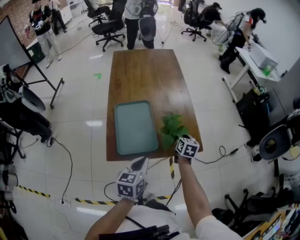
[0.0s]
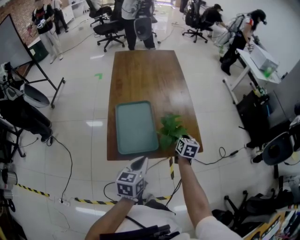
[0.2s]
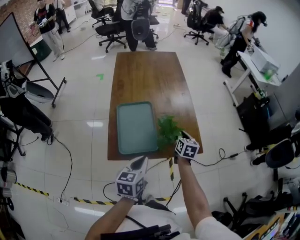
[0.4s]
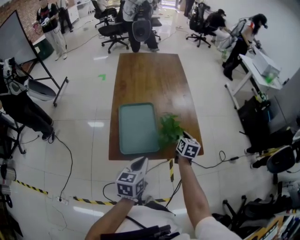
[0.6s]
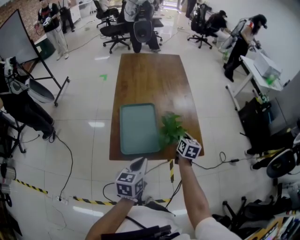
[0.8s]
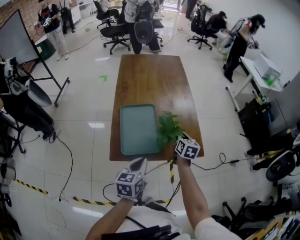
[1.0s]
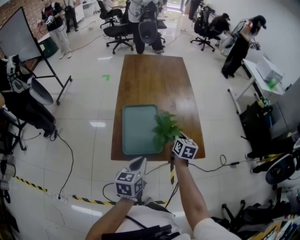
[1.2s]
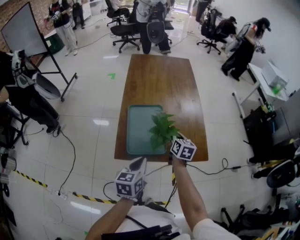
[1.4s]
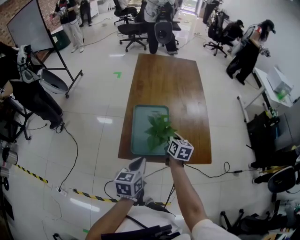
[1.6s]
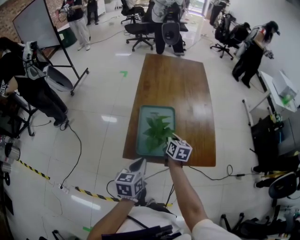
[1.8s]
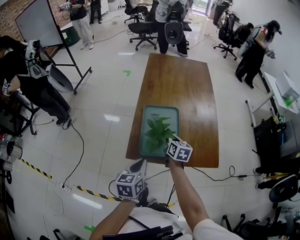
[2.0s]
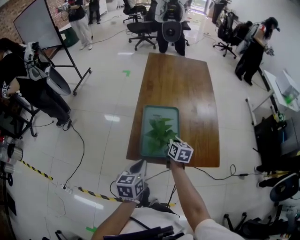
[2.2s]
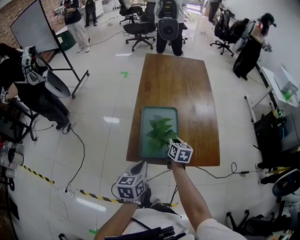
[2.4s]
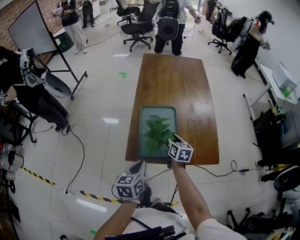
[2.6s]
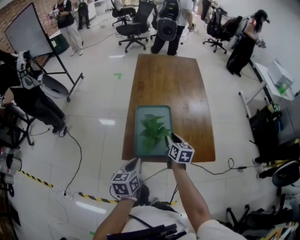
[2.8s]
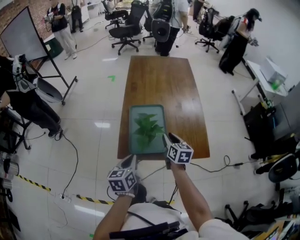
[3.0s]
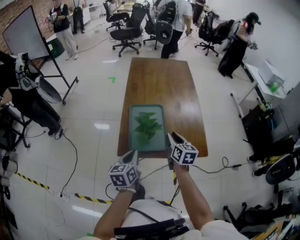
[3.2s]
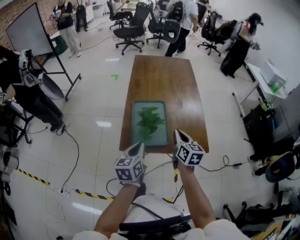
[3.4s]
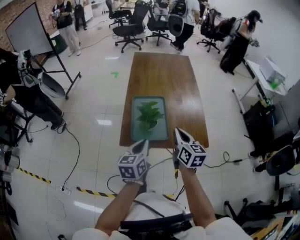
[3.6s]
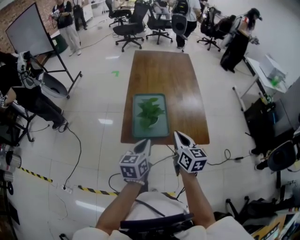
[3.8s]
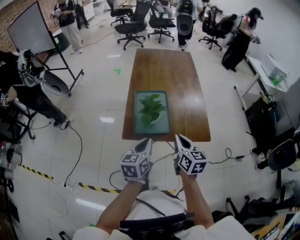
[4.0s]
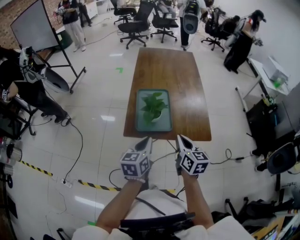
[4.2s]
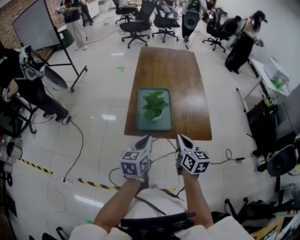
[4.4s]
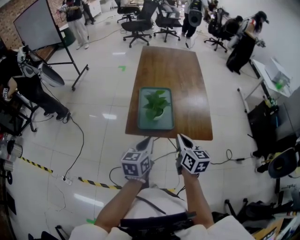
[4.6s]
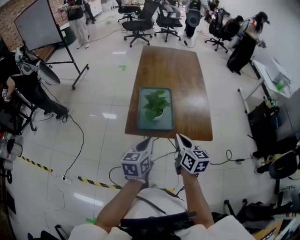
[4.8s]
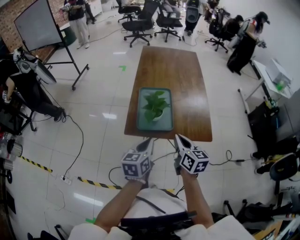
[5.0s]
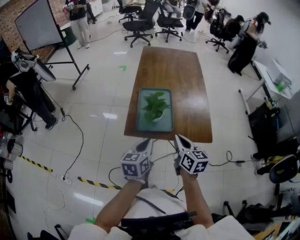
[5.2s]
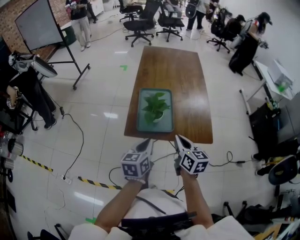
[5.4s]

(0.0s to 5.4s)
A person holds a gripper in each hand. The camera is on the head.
0.0s - 1.4s: The right gripper heads to the left, covering some 10 cm.
1.4s - 2.8s: The grippers both shift to the left by about 10 cm. The right gripper opens its fingers.
2.8s - 4.0s: The right gripper is displaced backward and upward by roughly 20 cm, and closes. The left gripper moves to the right, upward and backward, approximately 10 cm.
4.0s - 5.4s: There are only small adjustments of the grippers.

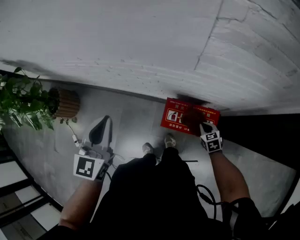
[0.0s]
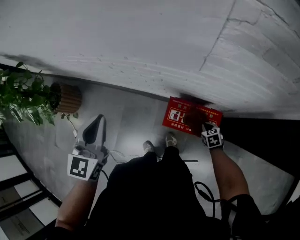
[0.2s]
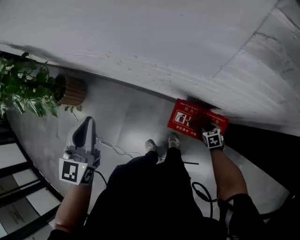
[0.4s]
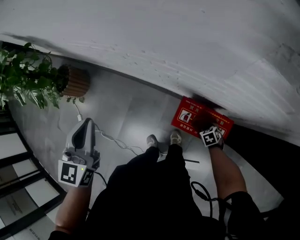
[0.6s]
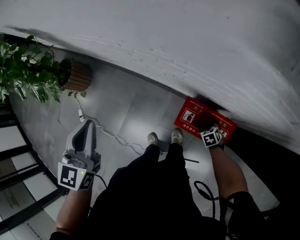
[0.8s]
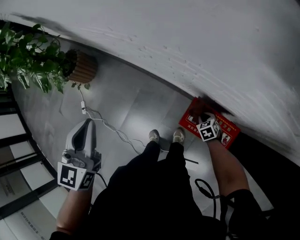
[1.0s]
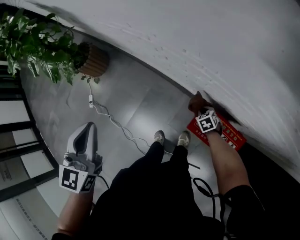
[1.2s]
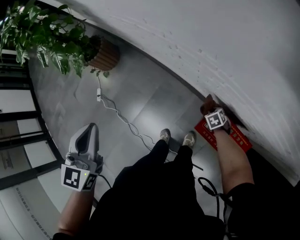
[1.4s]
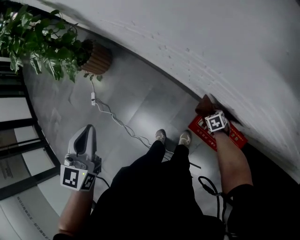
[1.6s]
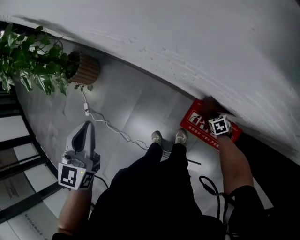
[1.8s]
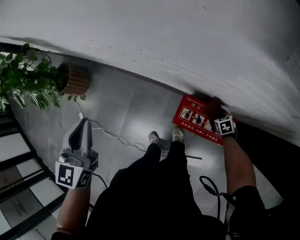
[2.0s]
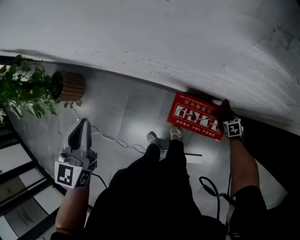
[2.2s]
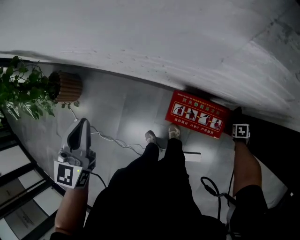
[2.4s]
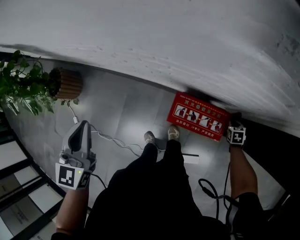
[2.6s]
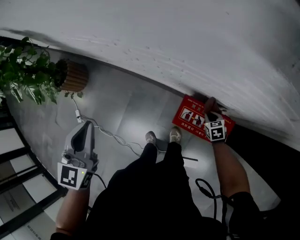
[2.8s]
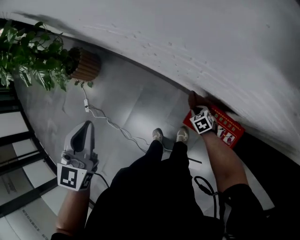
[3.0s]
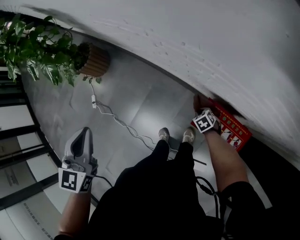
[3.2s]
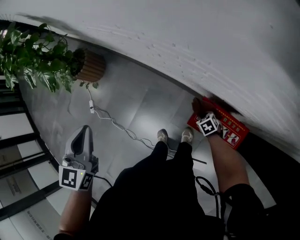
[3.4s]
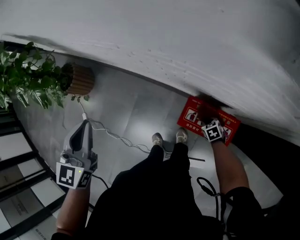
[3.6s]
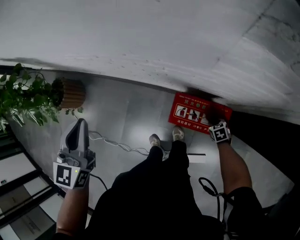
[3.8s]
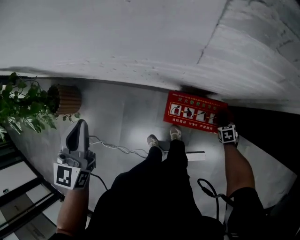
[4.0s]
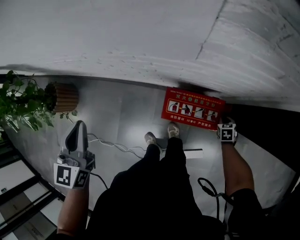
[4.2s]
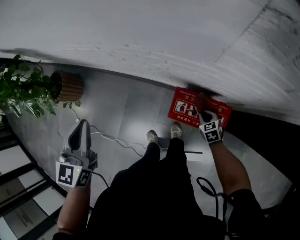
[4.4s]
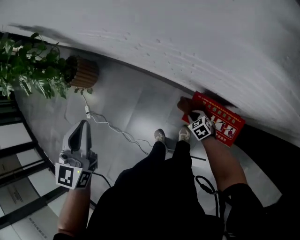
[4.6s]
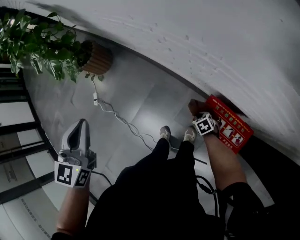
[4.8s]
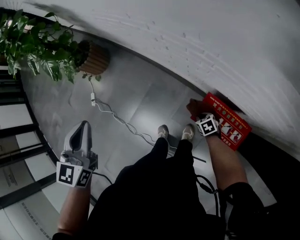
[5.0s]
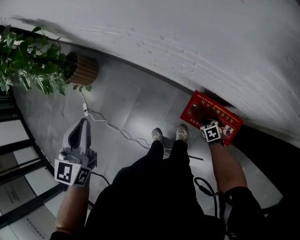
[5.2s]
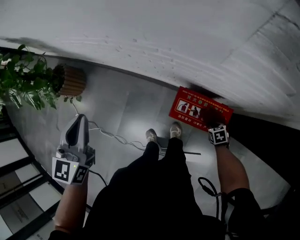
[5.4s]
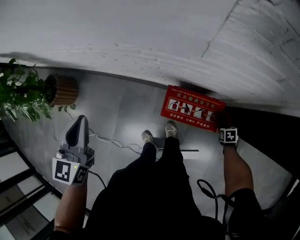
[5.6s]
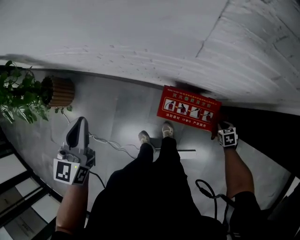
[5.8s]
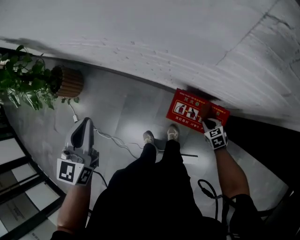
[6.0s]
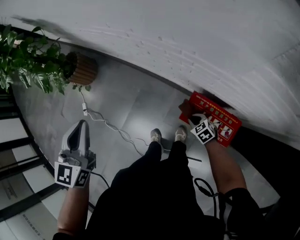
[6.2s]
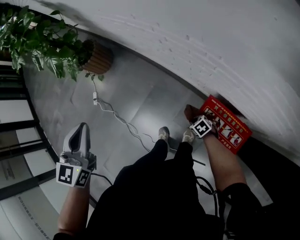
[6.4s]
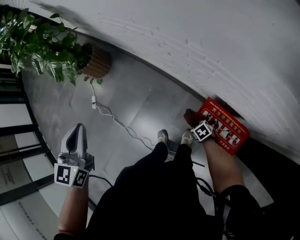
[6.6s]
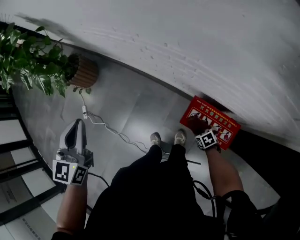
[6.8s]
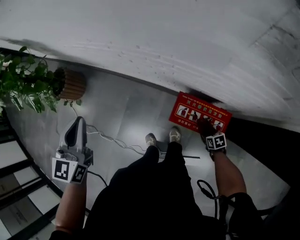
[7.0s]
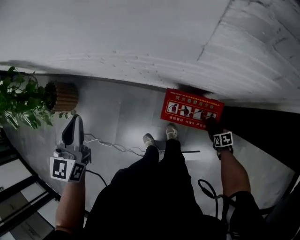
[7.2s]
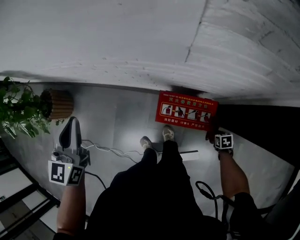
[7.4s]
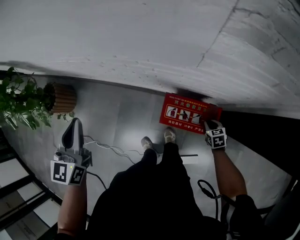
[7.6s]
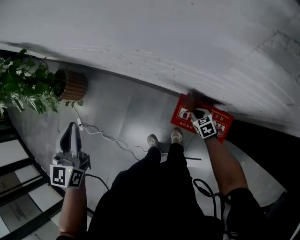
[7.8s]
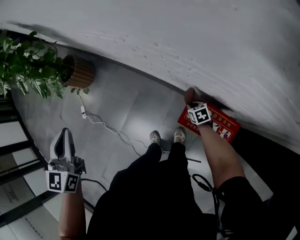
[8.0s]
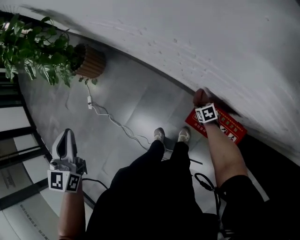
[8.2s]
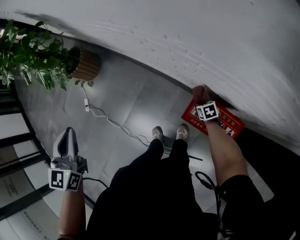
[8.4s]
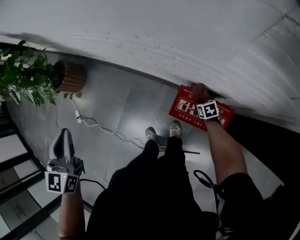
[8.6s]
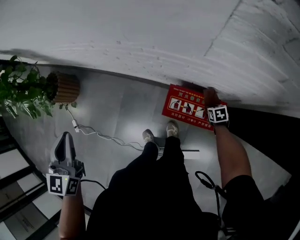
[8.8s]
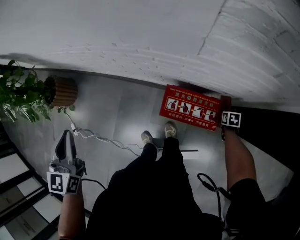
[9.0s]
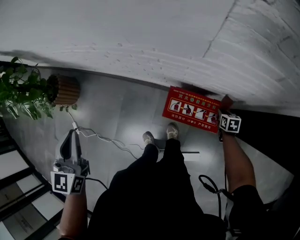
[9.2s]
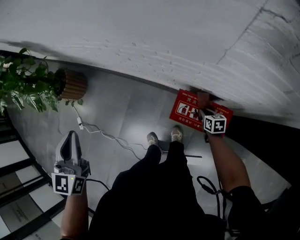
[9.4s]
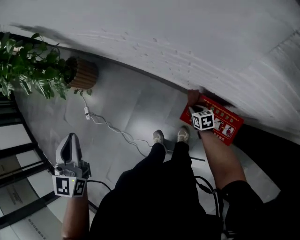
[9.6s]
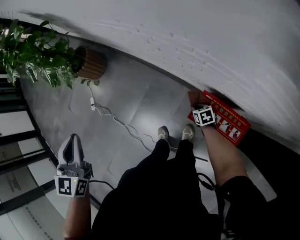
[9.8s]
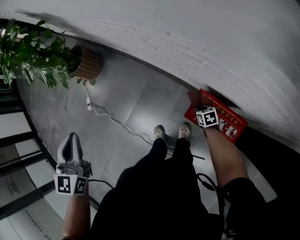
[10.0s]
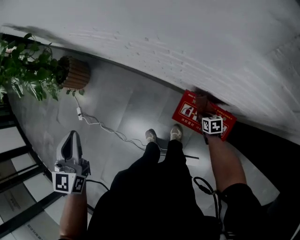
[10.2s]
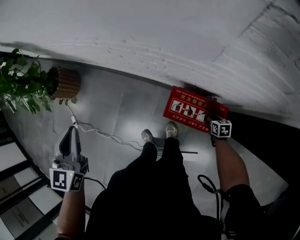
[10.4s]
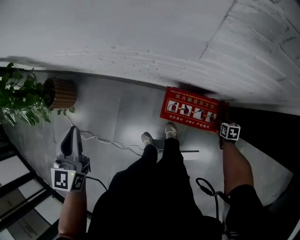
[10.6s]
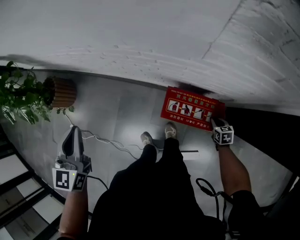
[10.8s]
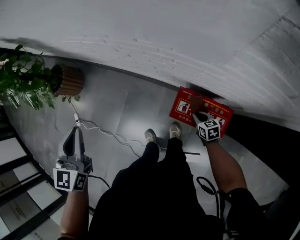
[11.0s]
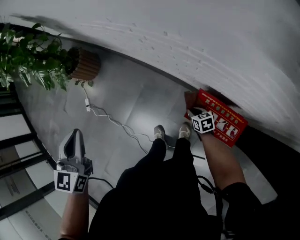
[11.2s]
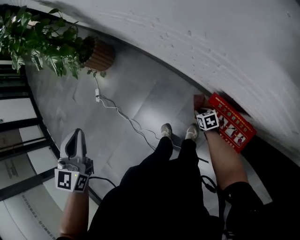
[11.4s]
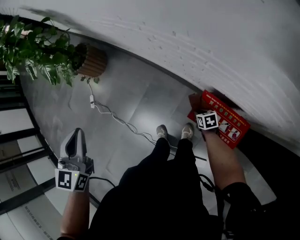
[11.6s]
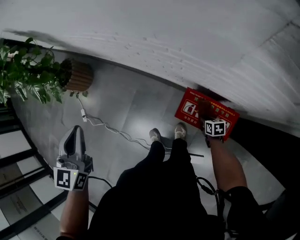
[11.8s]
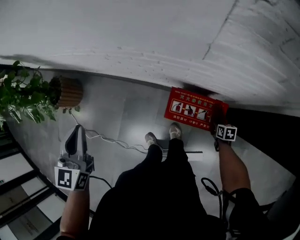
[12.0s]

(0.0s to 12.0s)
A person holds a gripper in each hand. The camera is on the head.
0.0s - 1.6s: The left gripper moves about 15 cm, and rotates approximately 30 degrees; the right gripper changes place by some 20 cm, changes its angle by some 30 degrees, and opens, then closes again.
3.0s - 4.4s: The right gripper changes its angle by roughly 20 degrees.
6.0s - 7.6s: The right gripper moves about 10 cm downward and comes back.
7.6s - 9.0s: The right gripper turns by roughly 20 degrees.

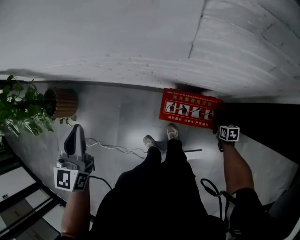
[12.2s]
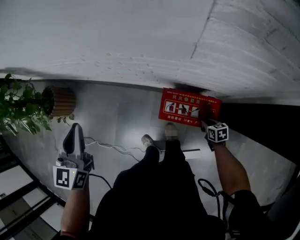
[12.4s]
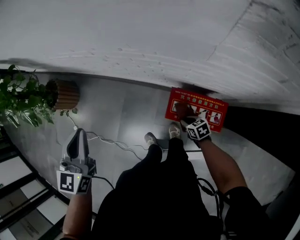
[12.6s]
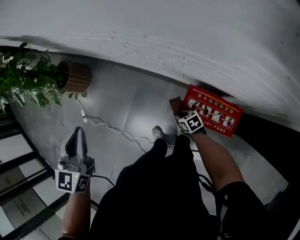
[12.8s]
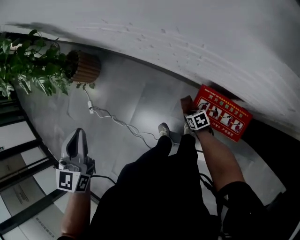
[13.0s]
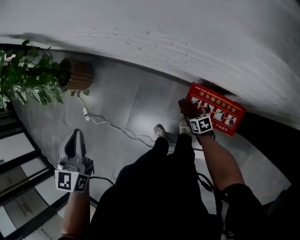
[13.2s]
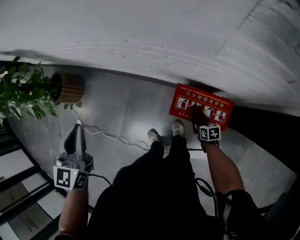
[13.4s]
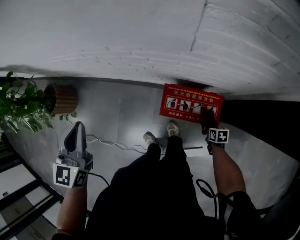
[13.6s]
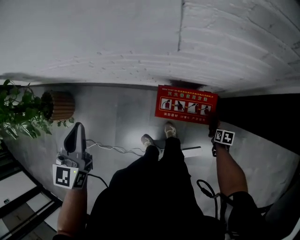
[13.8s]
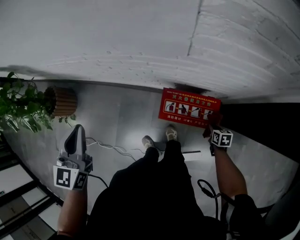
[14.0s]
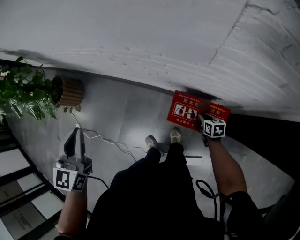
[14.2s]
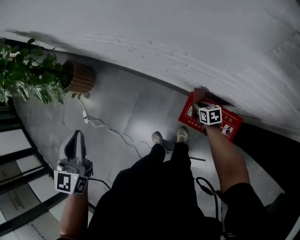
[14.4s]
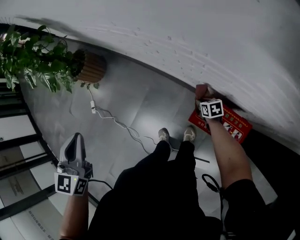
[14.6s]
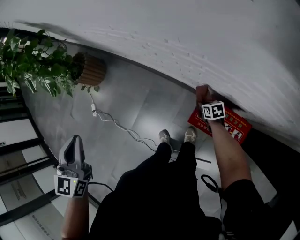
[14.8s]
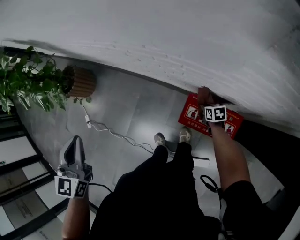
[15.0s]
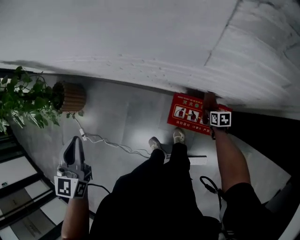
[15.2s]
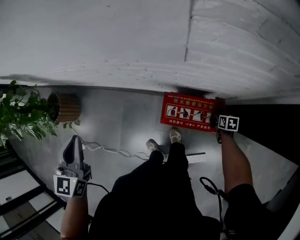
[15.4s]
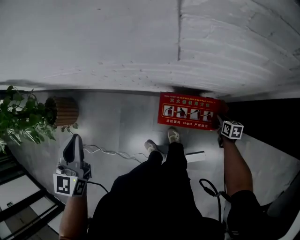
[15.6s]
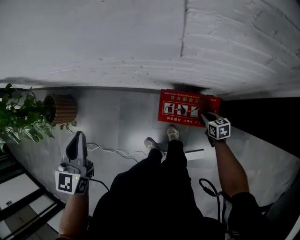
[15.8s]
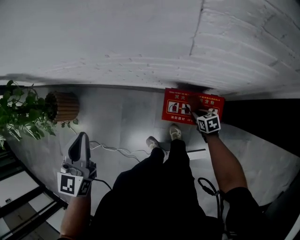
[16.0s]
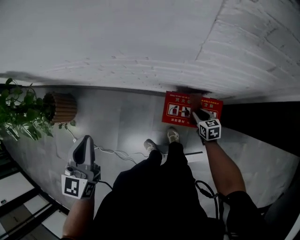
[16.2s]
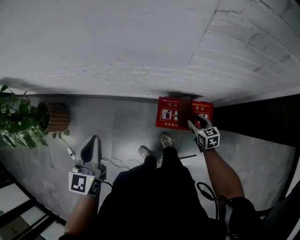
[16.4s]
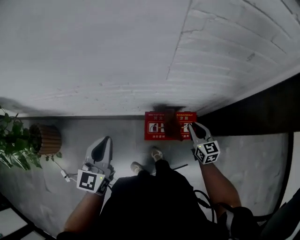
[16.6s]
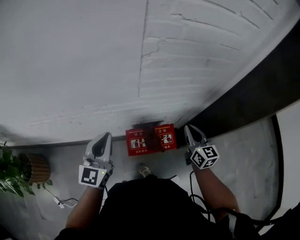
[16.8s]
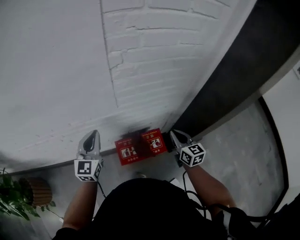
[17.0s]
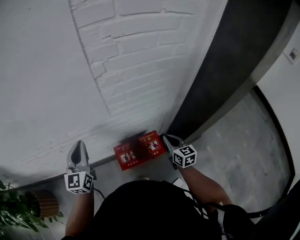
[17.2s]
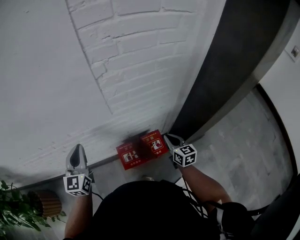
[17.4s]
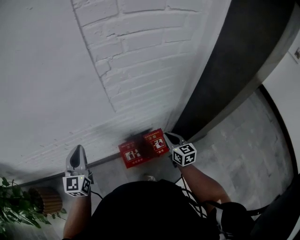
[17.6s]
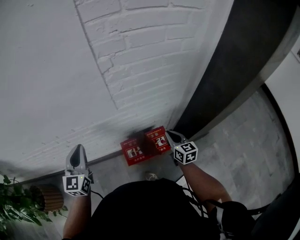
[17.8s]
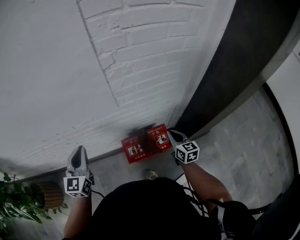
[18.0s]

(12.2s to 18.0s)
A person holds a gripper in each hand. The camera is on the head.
13.6s - 15.0s: The left gripper ends up roughly 10 cm from where it was; the right gripper shifts by about 25 cm, and swivels roughly 20 degrees.
15.0s - 16.6s: The right gripper shifts some 25 cm upward, swivels some 50 degrees, and opens and closes again. The left gripper changes place by some 15 cm, and swivels approximately 40 degrees.
16.6s - 18.0s: The left gripper heads forward, covering approximately 10 cm. The right gripper is displaced to the right by approximately 5 cm, and travels upward and back again, roughly 10 cm each way.

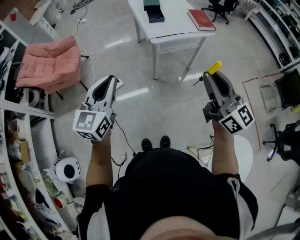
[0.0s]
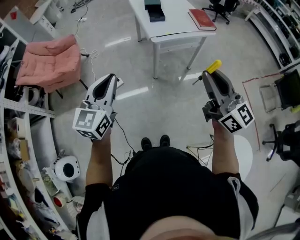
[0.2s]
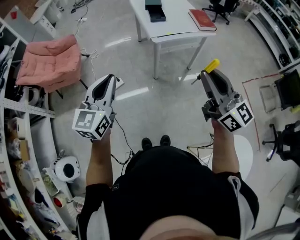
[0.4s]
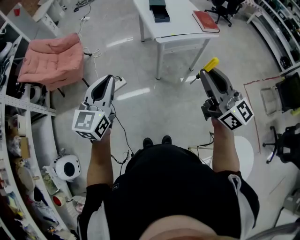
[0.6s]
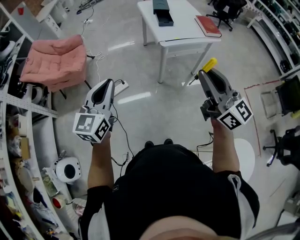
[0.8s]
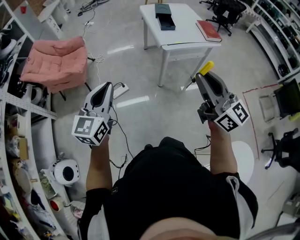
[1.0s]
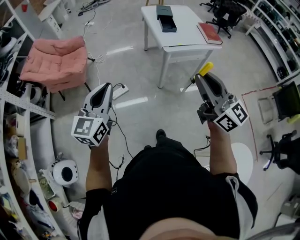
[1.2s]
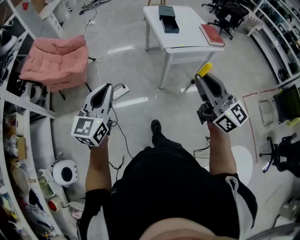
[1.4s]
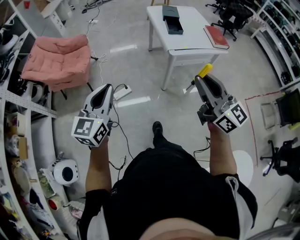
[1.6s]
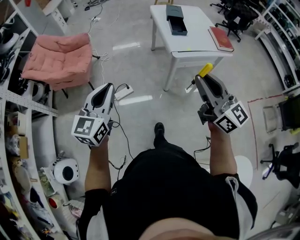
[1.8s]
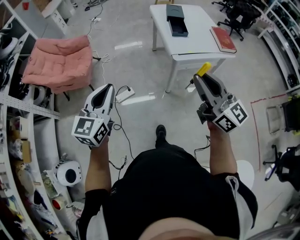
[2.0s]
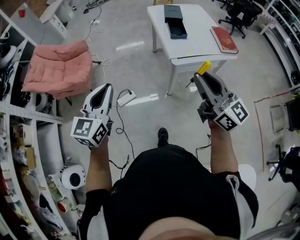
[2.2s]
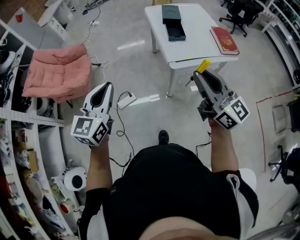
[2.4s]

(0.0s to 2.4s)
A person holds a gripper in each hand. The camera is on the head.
0.0s - 1.2s: Both grippers travel together to the left, some 15 cm.
1.2s - 2.4s: The right gripper travels forward by roughly 25 cm, while the left gripper travels forward and to the right by some 25 cm.
